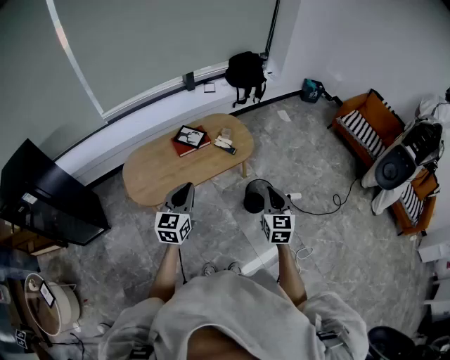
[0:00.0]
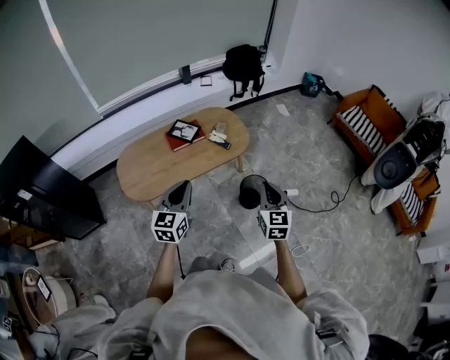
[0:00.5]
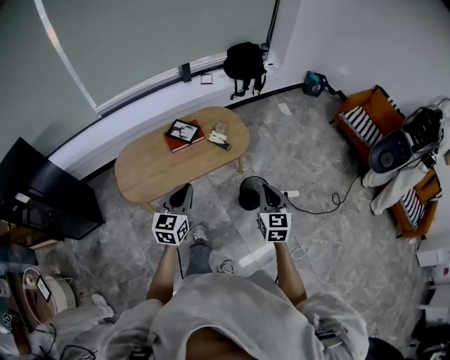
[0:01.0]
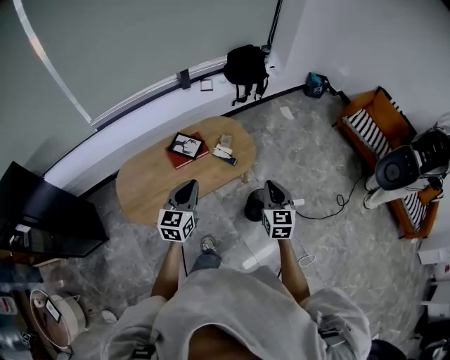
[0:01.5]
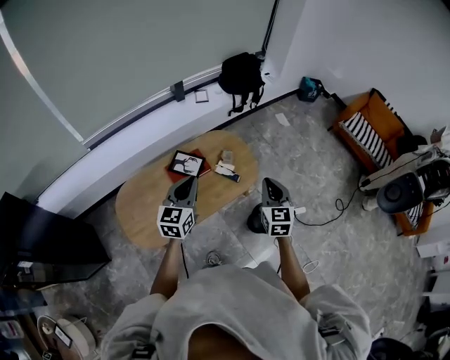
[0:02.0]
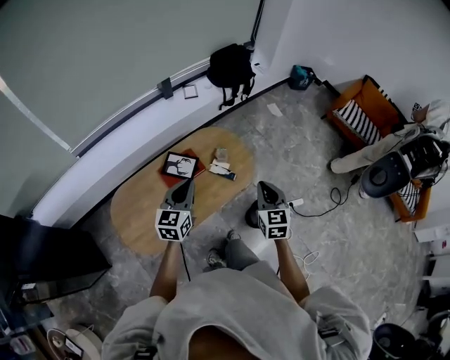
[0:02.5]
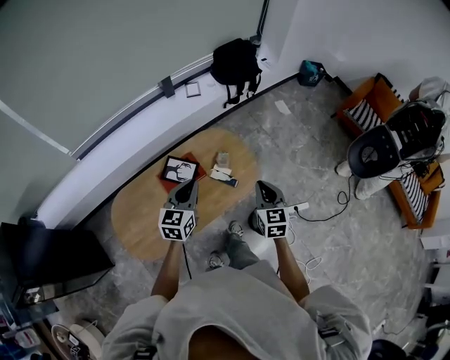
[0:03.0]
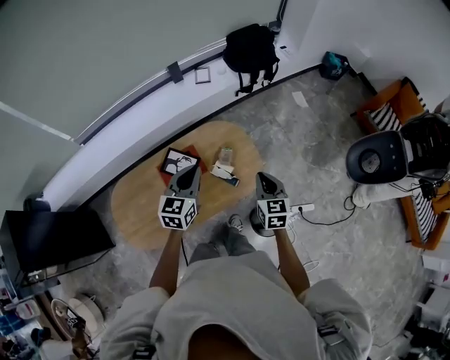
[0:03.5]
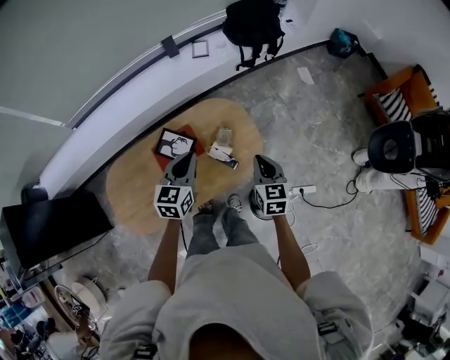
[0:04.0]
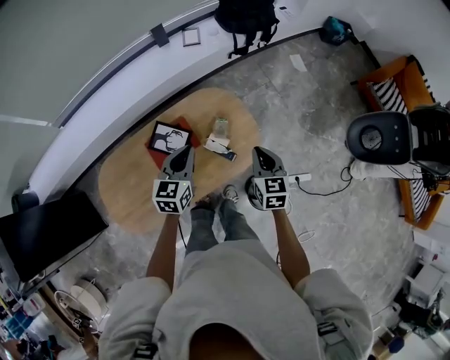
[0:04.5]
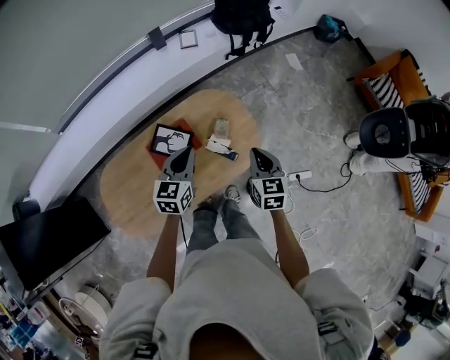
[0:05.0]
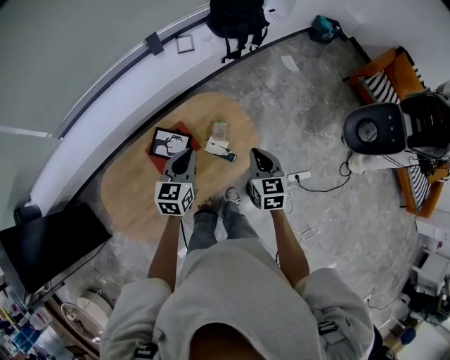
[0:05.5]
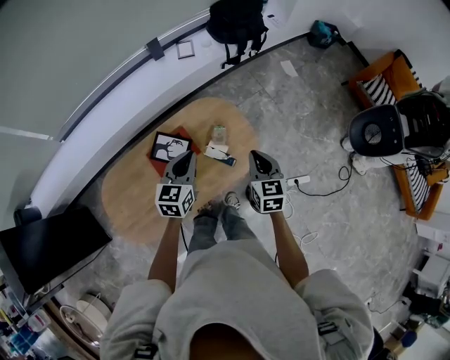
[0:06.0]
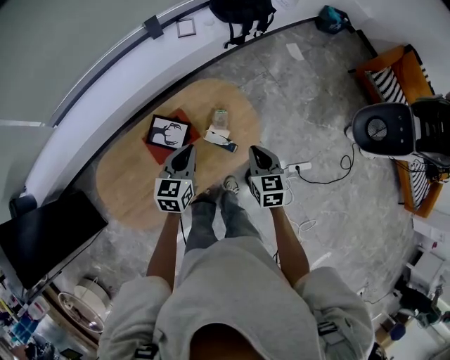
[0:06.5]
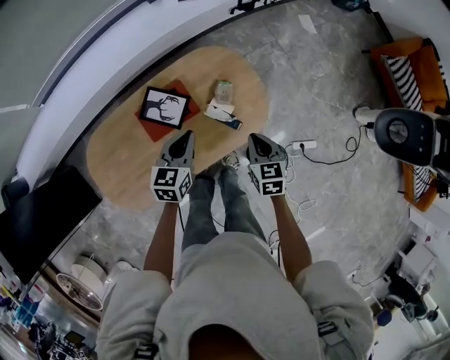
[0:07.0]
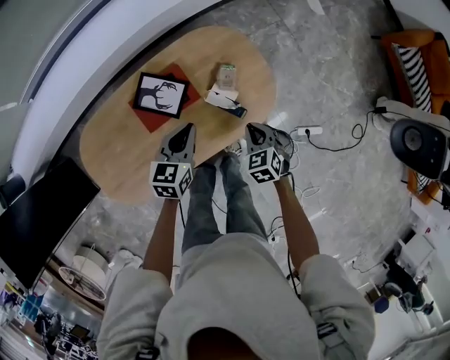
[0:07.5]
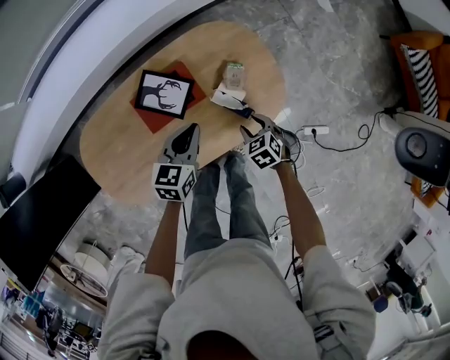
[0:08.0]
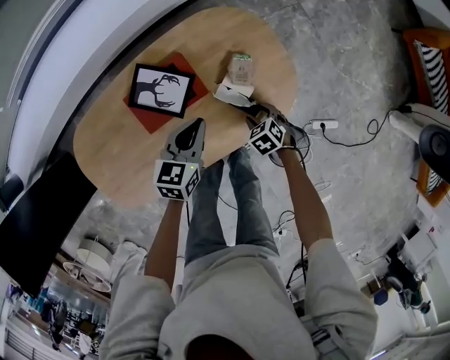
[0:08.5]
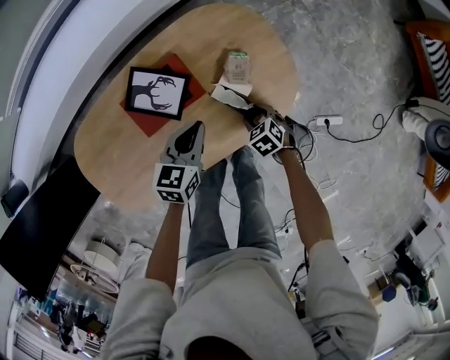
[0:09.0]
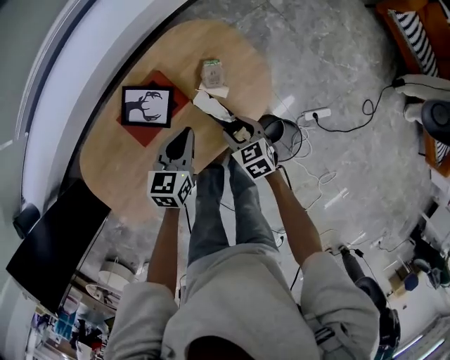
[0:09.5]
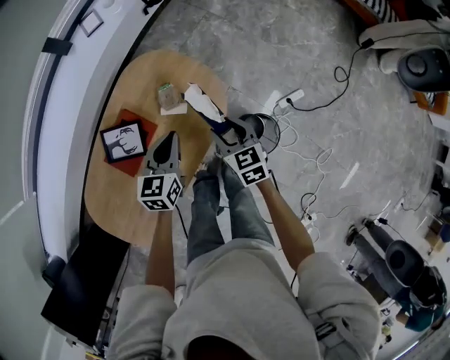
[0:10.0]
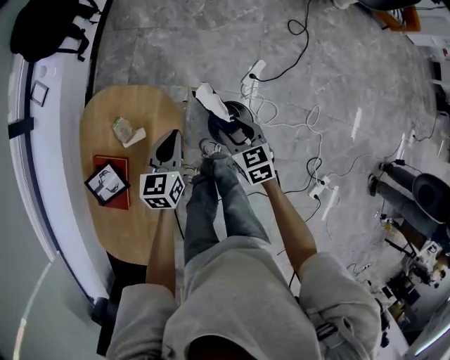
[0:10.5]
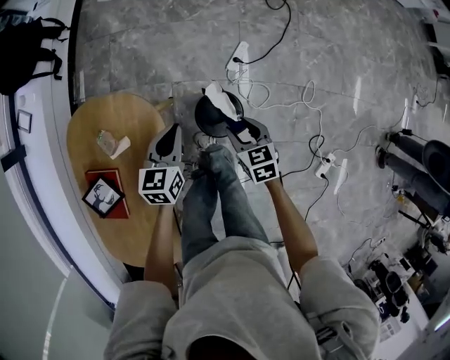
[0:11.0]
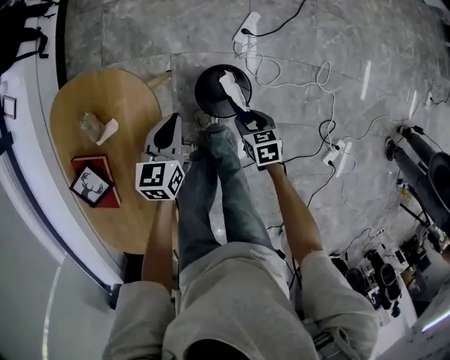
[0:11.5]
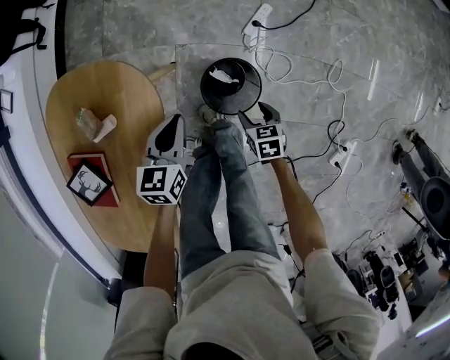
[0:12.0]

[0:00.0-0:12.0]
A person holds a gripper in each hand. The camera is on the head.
0:00.0 to 0:02.0: Both grippers travel together forward, some 30 cm.
0:02.0 to 0:04.0: The grippers both shift forward and downward by roughly 25 cm. The right gripper swivels some 20 degrees.
0:04.0 to 0:06.0: The grippers make only small movements.
0:06.0 to 0:08.0: The left gripper moves downward, about 15 cm. Meanwhile the right gripper is displaced downward by about 30 cm, angles its fingers downward, by about 30 degrees, and opens up.
0:08.0 to 0:10.0: The left gripper moves some 5 cm downward and comes back. The right gripper is displaced upward by approximately 10 cm, and turns by some 50 degrees.
0:10.0 to 0:12.0: The left gripper shifts by roughly 25 cm, and turns by roughly 30 degrees, while the right gripper moves approximately 40 cm, and rotates roughly 50 degrees.

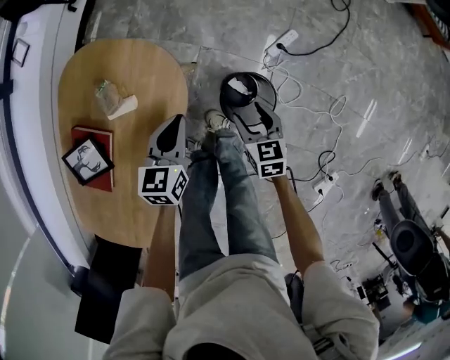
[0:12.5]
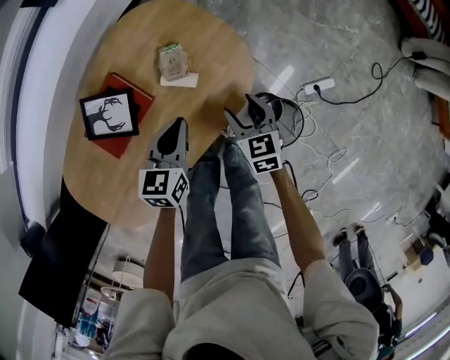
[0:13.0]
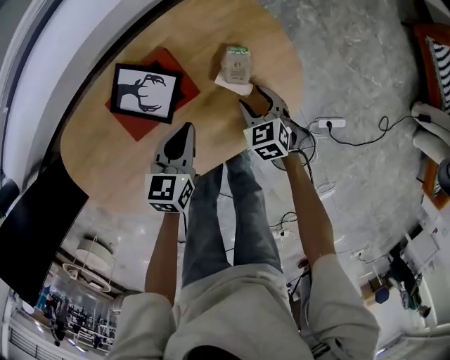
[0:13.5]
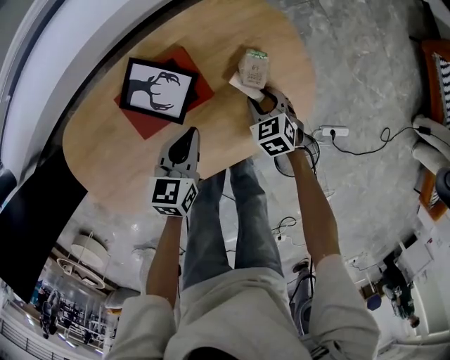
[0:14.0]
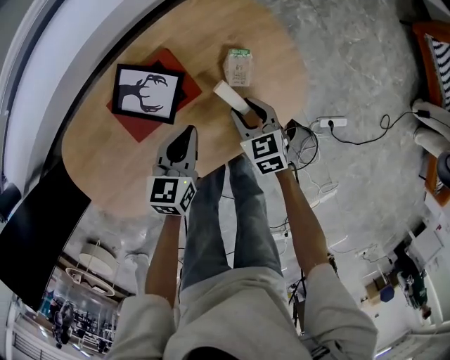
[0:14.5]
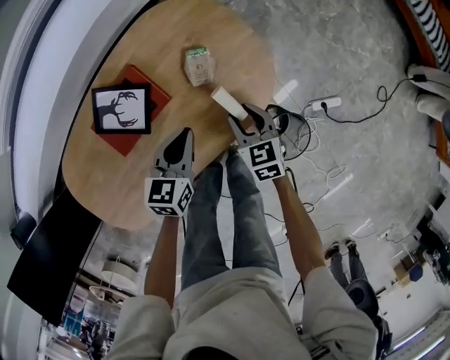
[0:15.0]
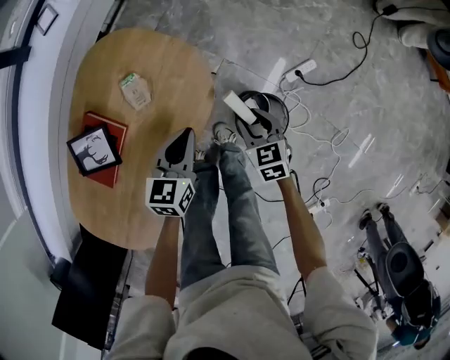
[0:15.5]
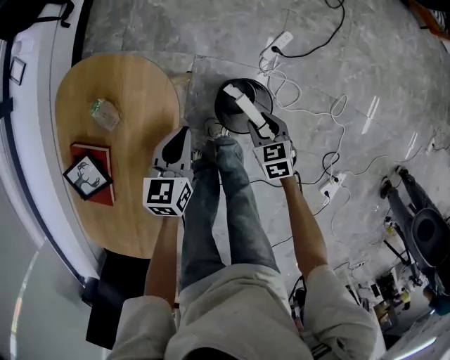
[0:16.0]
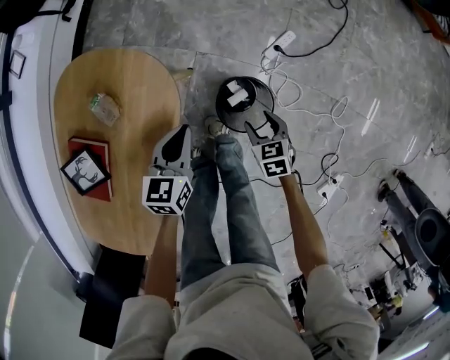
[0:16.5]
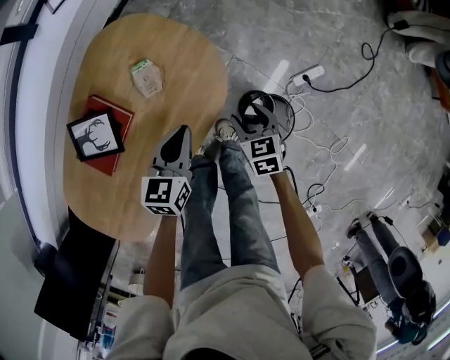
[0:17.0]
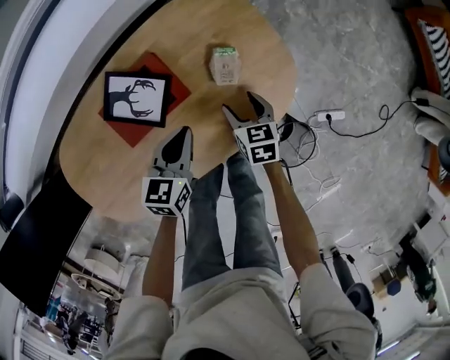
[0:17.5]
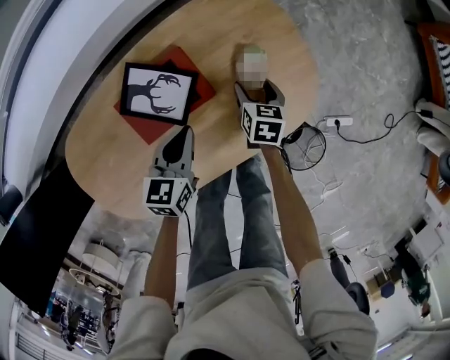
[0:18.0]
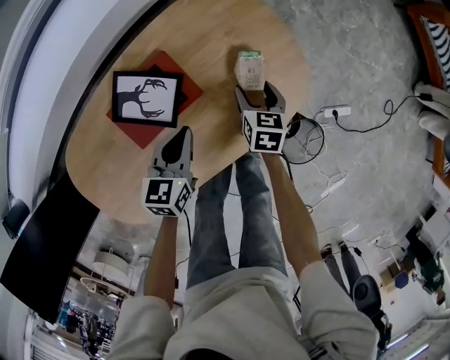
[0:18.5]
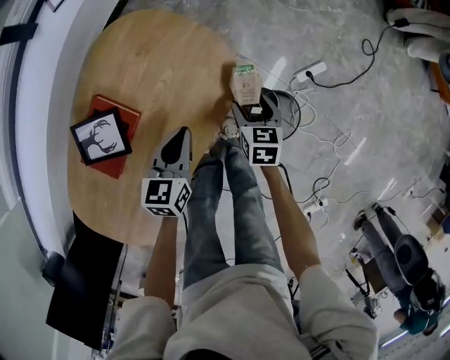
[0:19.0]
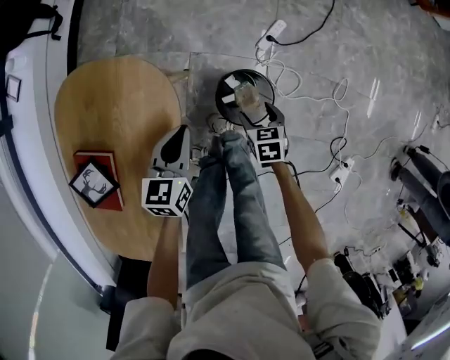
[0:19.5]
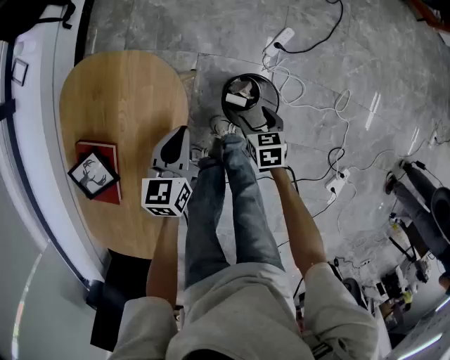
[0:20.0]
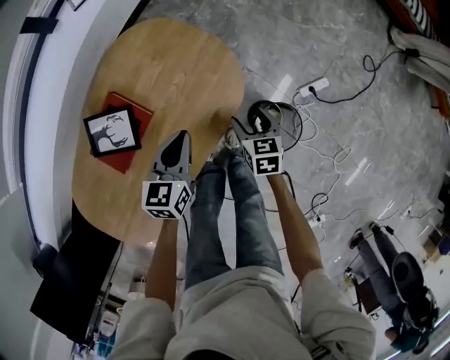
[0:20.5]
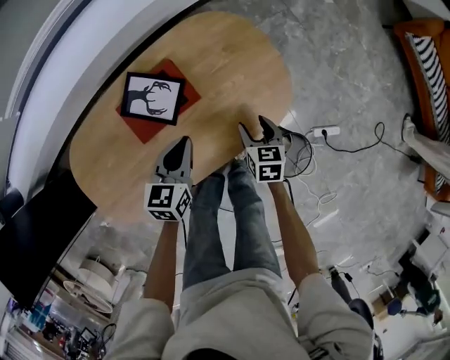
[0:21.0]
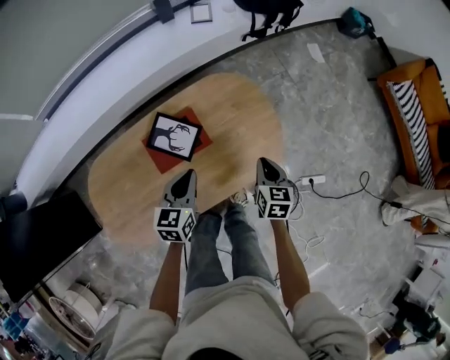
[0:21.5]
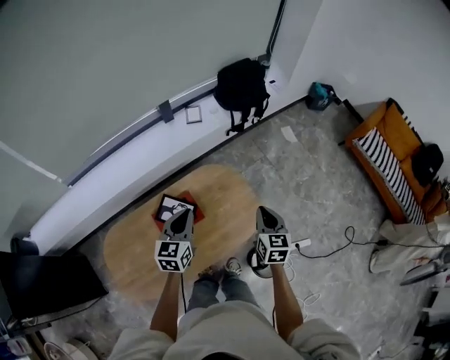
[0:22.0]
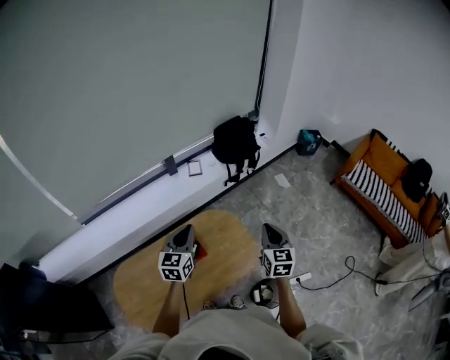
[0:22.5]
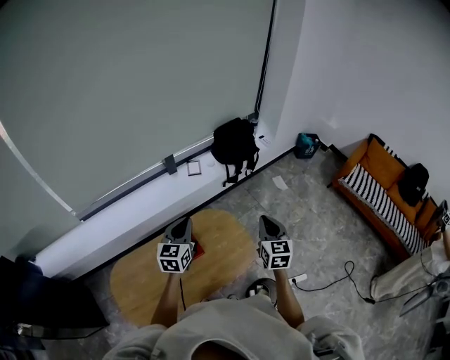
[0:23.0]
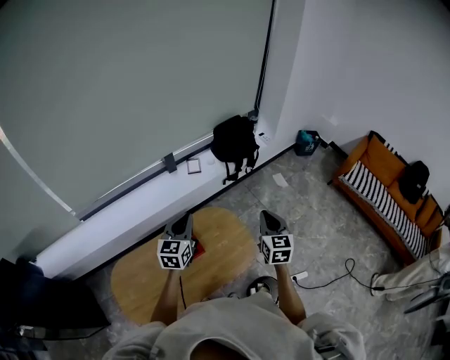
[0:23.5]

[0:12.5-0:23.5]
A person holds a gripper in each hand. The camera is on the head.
0:12.5 to 0:14.5: The left gripper changes place by roughly 25 cm, and changes its angle by about 40 degrees, while the right gripper ends up some 30 cm from where it was, and swivels about 50 degrees.
0:14.5 to 0:16.0: The left gripper changes place by approximately 30 cm, and swivels some 40 degrees. Meanwhile the right gripper shifts by approximately 35 cm, and changes its angle by roughly 50 degrees.
0:16.0 to 0:18.0: The left gripper moves some 35 cm, and swivels approximately 40 degrees; the right gripper moves about 40 cm, and opens.
0:18.0 to 0:20.0: The left gripper ends up some 30 cm from where it was, and rotates roughly 40 degrees. Meanwhile the right gripper shifts by roughly 40 cm, and swivels approximately 30 degrees.
0:20.0 to 0:21.5: The left gripper changes place by some 30 cm, and rotates approximately 50 degrees. Meanwhile the right gripper changes place by about 35 cm, changes its angle by some 40 degrees, and closes up.
0:21.5 to 0:23.5: The left gripper shifts about 30 cm upward and forward, and turns by roughly 30 degrees; the right gripper shifts approximately 35 cm upward, and turns by roughly 30 degrees.

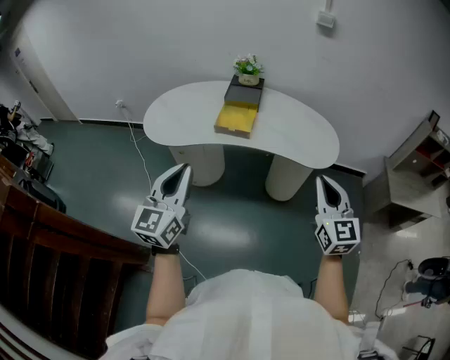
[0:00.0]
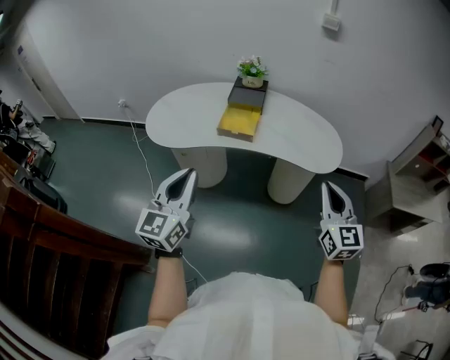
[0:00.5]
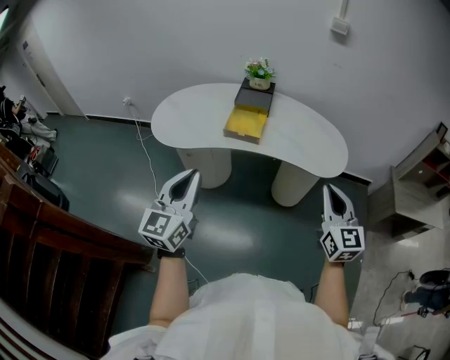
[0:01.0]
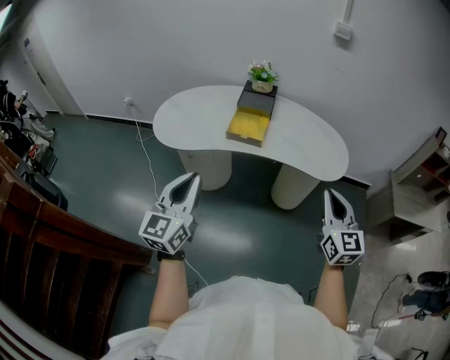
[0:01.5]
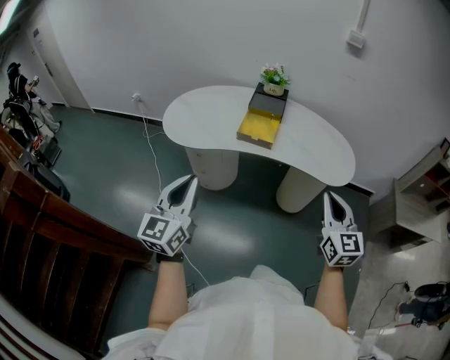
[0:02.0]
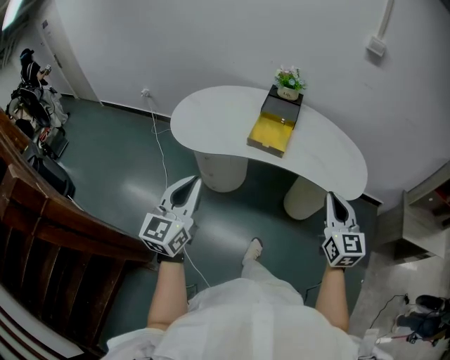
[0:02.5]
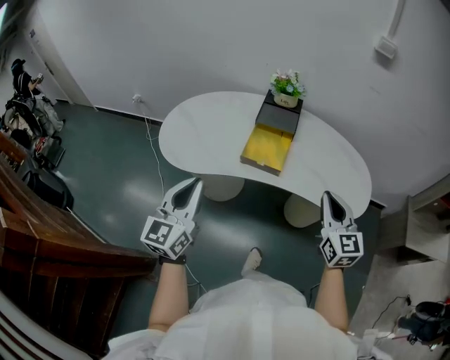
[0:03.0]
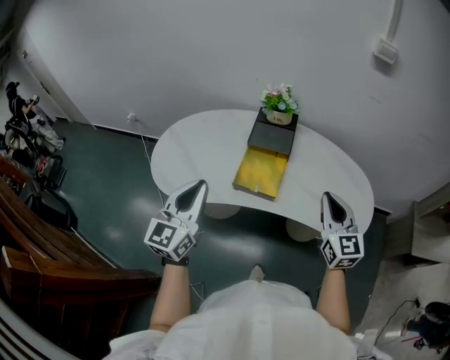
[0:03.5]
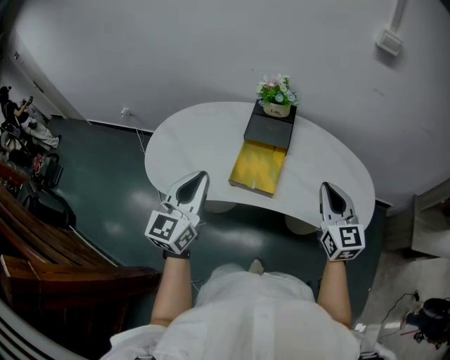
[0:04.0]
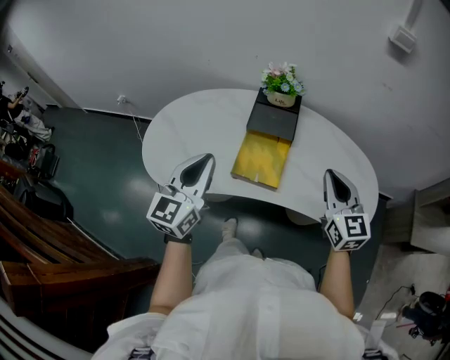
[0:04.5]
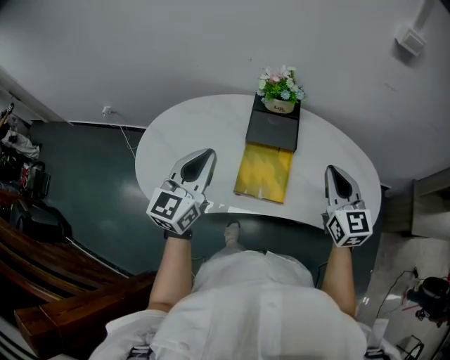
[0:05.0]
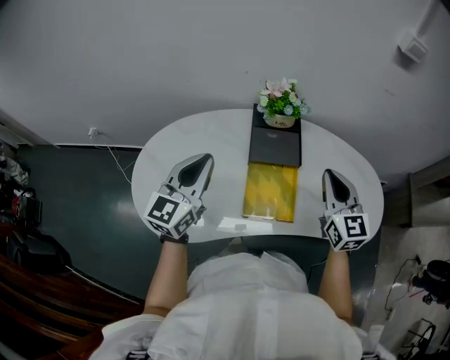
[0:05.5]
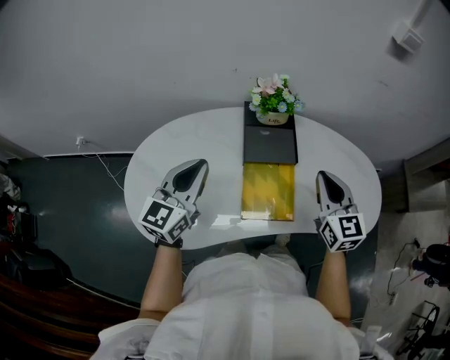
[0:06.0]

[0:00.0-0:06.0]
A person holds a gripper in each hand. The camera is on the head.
0:00.0 to 0:02.0: The left gripper moves to the left, roughly 5 cm, while the right gripper shifts by approximately 5 cm.
0:02.0 to 0:04.0: The grippers both shift forward by roughly 35 cm.
0:04.0 to 0:06.0: Both grippers move forward and to the left, some 20 cm. The left gripper changes its angle by about 20 degrees.
